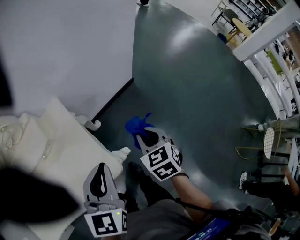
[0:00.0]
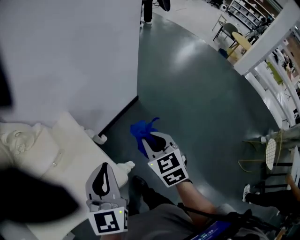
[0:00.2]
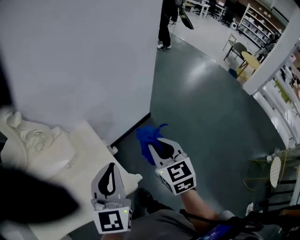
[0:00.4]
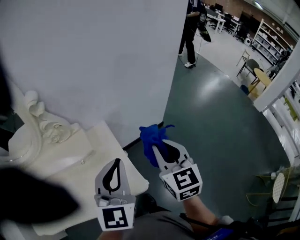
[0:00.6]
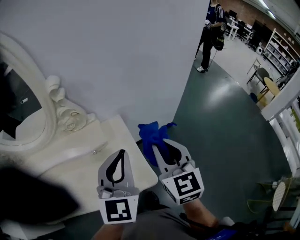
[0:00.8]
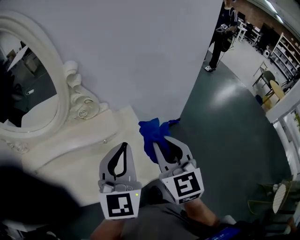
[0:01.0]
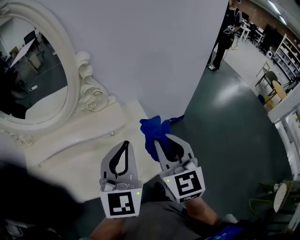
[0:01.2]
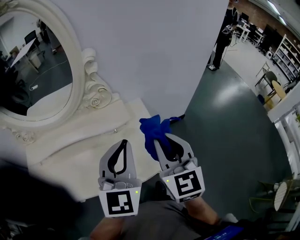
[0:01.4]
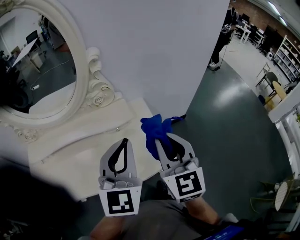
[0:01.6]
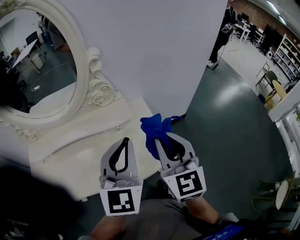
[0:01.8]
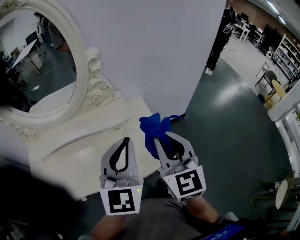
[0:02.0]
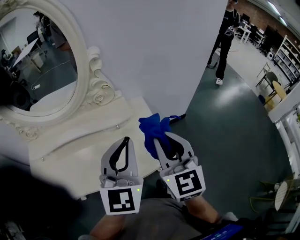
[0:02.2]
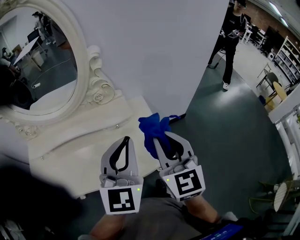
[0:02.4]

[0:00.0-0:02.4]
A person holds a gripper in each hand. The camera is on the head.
0:00.0 to 0:01.2: The right gripper heads upward and to the left, covering some 35 cm, and tips its fingers upward by approximately 30 degrees; the left gripper travels to the left and upward by roughly 25 cm, and changes its angle by some 30 degrees.
0:01.2 to 0:02.4: The grippers stay close to where they were, moving slightly.

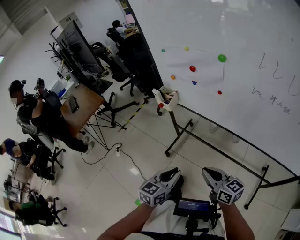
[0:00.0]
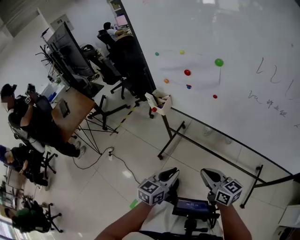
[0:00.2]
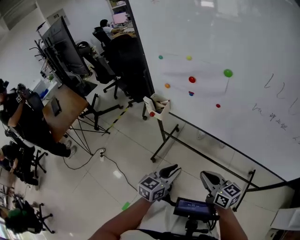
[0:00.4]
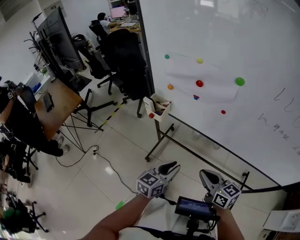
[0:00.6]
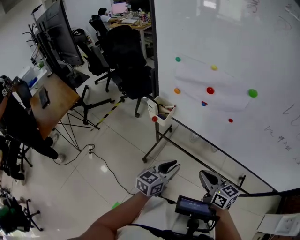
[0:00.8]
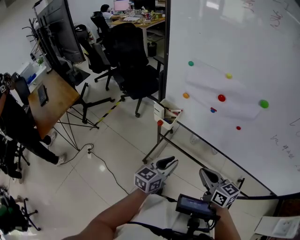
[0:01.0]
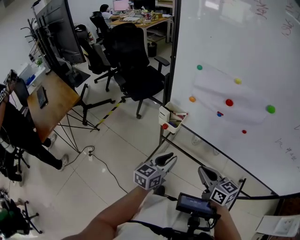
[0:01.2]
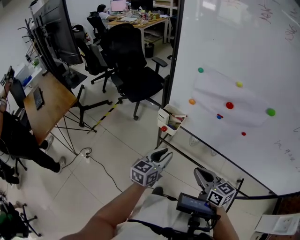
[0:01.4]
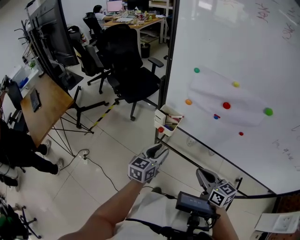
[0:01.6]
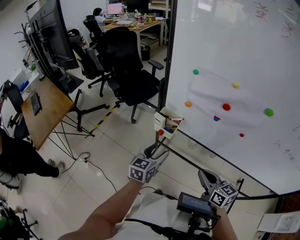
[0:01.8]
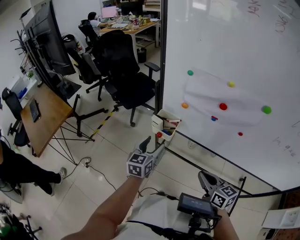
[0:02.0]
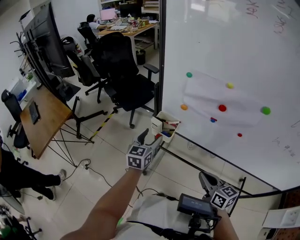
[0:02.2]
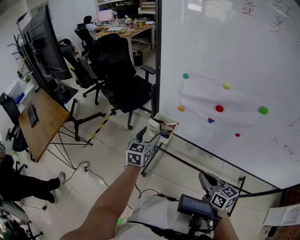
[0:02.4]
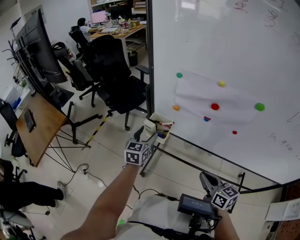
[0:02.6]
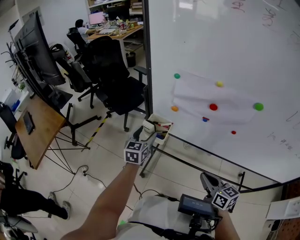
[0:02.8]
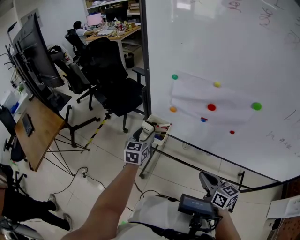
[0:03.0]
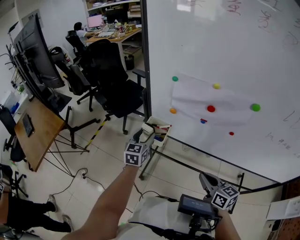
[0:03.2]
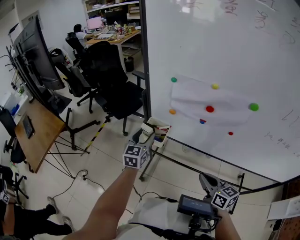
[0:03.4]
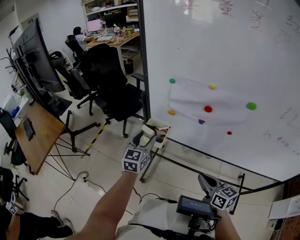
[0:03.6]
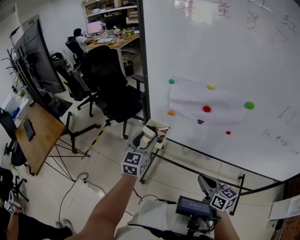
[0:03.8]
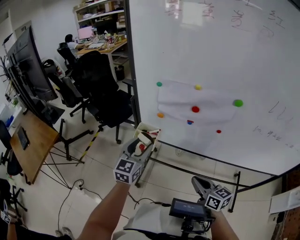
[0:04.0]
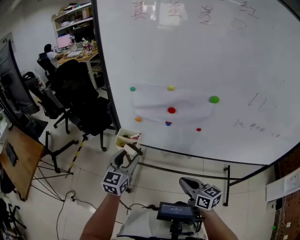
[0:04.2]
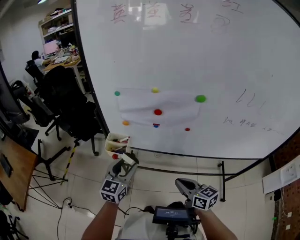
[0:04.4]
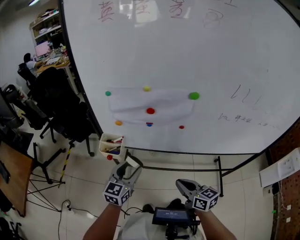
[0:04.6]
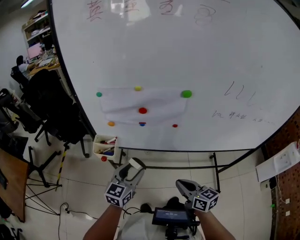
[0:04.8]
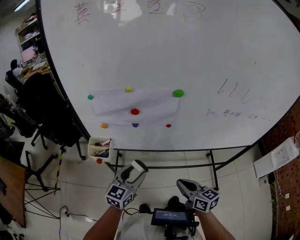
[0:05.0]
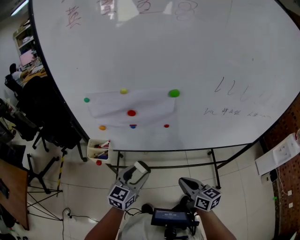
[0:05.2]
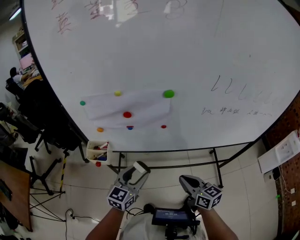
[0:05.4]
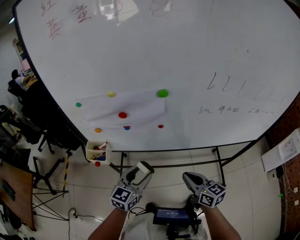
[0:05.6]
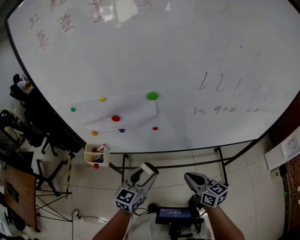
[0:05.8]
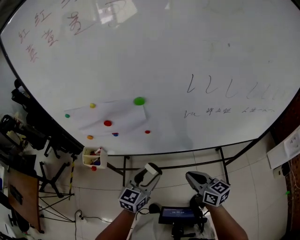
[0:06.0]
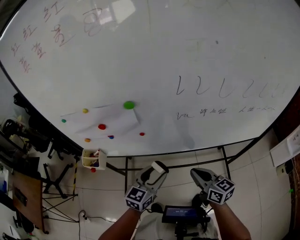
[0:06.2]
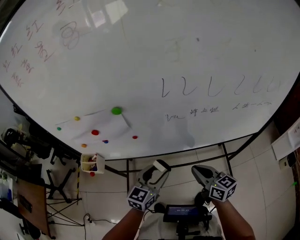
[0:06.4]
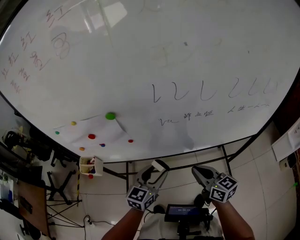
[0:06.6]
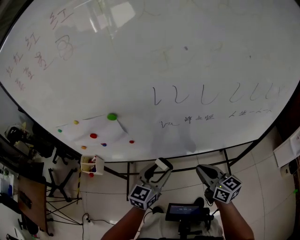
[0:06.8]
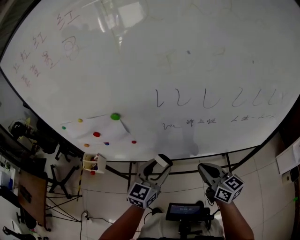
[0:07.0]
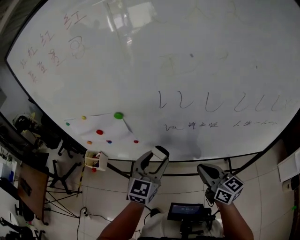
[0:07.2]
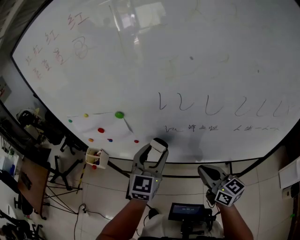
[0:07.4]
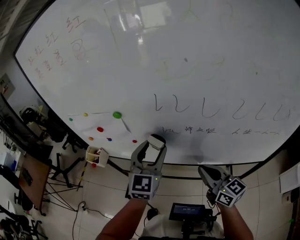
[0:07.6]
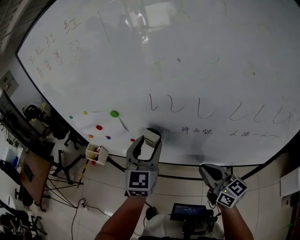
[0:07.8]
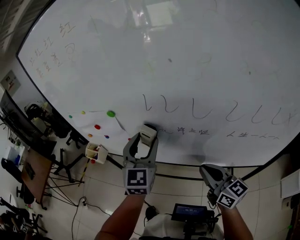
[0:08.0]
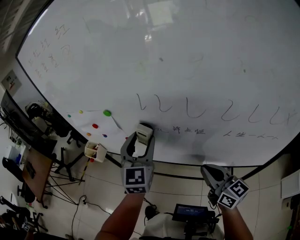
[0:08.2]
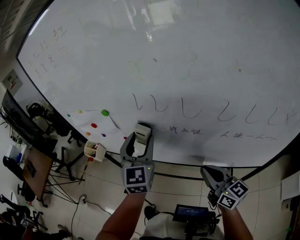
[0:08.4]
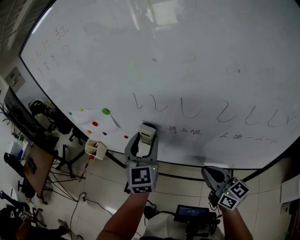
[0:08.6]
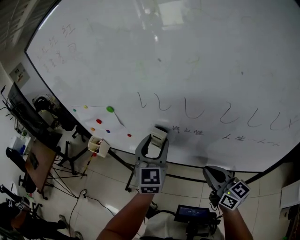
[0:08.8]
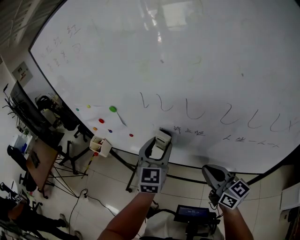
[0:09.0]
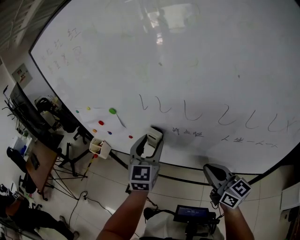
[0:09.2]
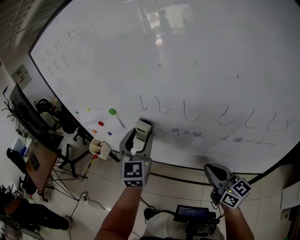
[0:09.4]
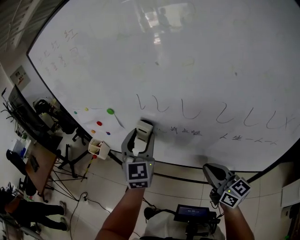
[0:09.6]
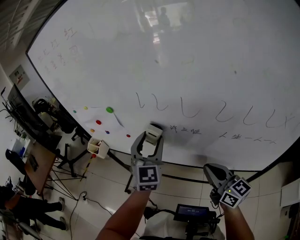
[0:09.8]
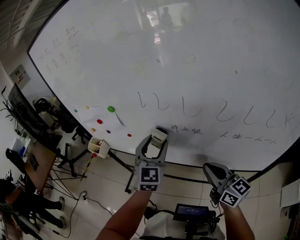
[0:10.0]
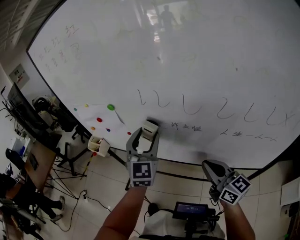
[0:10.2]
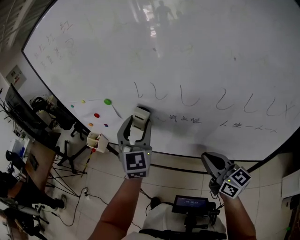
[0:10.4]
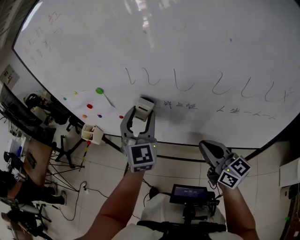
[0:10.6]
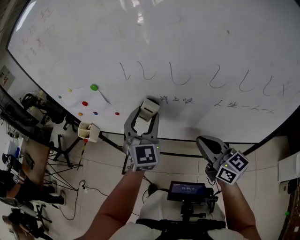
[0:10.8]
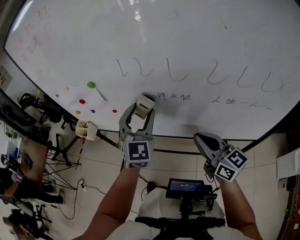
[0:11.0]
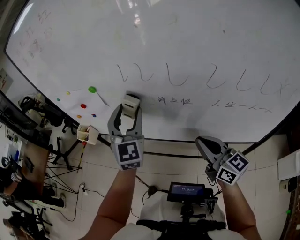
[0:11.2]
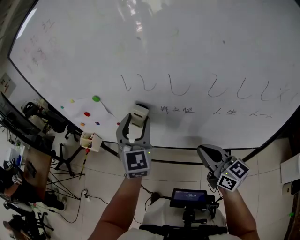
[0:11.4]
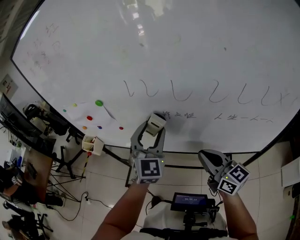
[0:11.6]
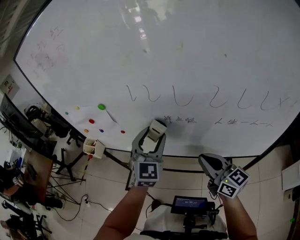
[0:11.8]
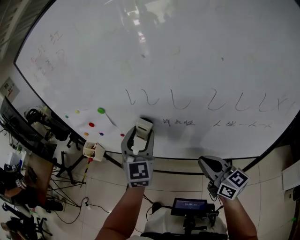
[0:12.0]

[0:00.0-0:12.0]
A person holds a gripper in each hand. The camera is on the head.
0:00.0 to 0:01.6: The grippers both shift forward and to the left by some 30 cm.
0:01.6 to 0:03.0: The left gripper heads forward, covering some 15 cm.
0:03.0 to 0:04.4: The right gripper ends up about 5 cm from where it was; the left gripper moves backward, to the right and upward, some 15 cm, and changes its angle by some 20 degrees.
0:04.4 to 0:06.0: The grippers both shift to the right by roughly 20 cm. The left gripper changes its angle by roughly 20 degrees.
0:06.0 to 0:07.6: The right gripper travels to the right and upward by some 20 cm; the left gripper shifts approximately 25 cm upward, to the right and forward, and swivels some 30 degrees.
0:07.6 to 0:09.0: Both grippers move to the right, about 5 cm.
0:09.0 to 0:10.4: The left gripper goes up and down, approximately 10 cm each way, reversing 2 times.
0:10.4 to 0:12.0: The left gripper swings up and down, roughly 5 cm each way, with 2 reversals.

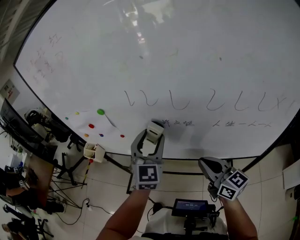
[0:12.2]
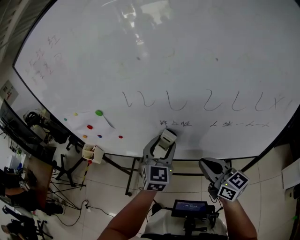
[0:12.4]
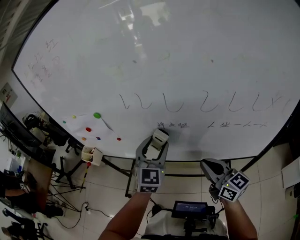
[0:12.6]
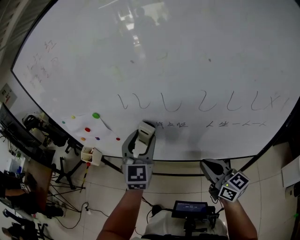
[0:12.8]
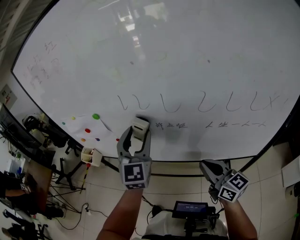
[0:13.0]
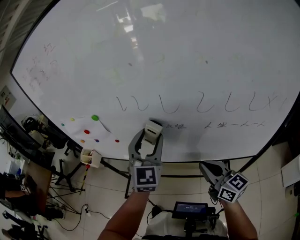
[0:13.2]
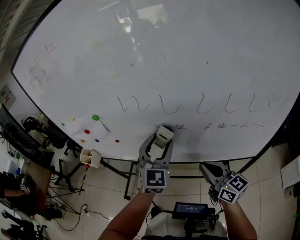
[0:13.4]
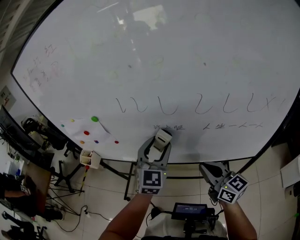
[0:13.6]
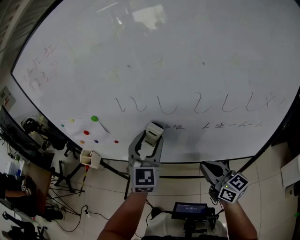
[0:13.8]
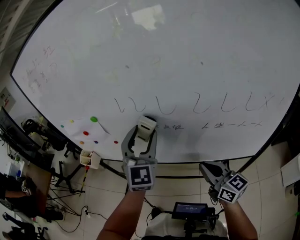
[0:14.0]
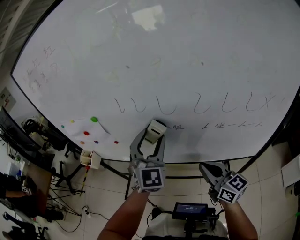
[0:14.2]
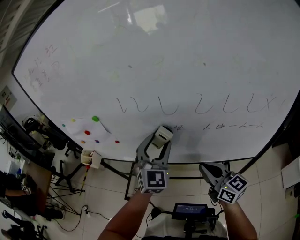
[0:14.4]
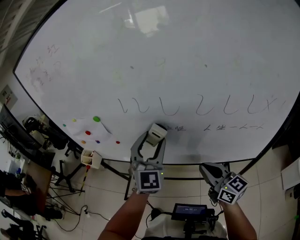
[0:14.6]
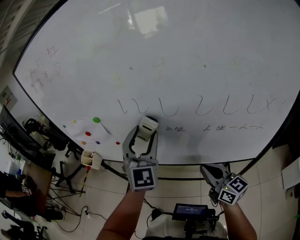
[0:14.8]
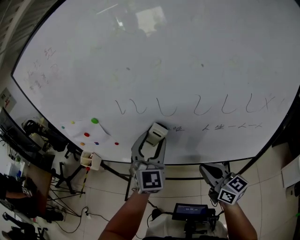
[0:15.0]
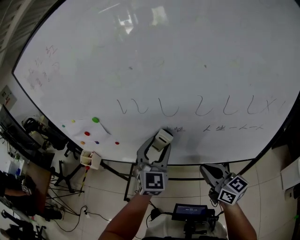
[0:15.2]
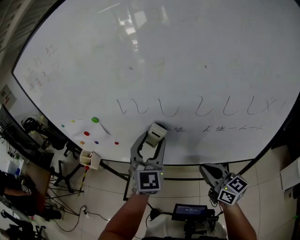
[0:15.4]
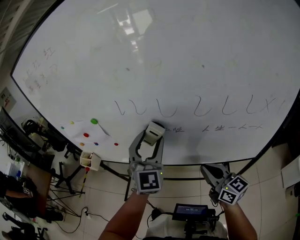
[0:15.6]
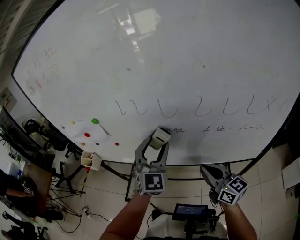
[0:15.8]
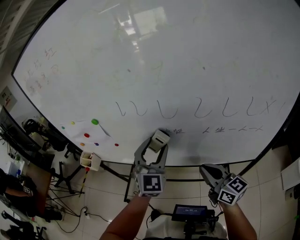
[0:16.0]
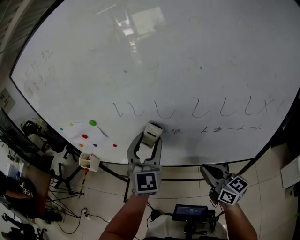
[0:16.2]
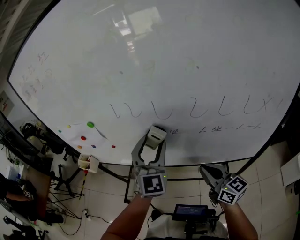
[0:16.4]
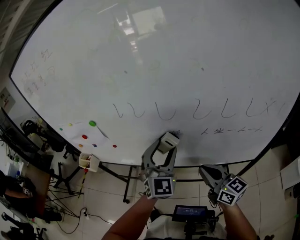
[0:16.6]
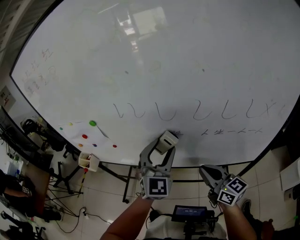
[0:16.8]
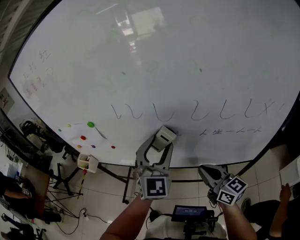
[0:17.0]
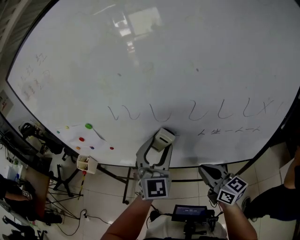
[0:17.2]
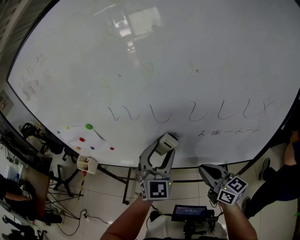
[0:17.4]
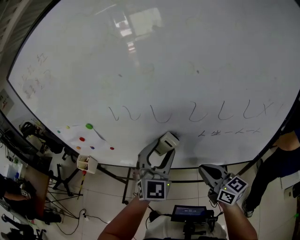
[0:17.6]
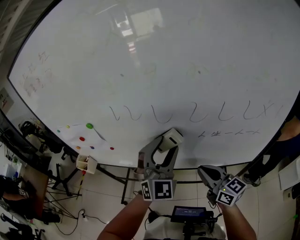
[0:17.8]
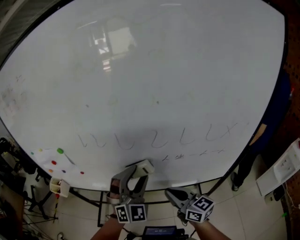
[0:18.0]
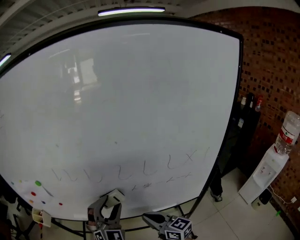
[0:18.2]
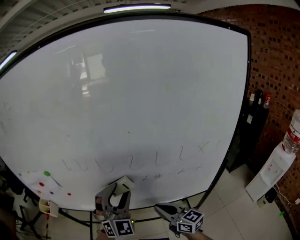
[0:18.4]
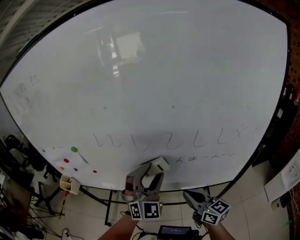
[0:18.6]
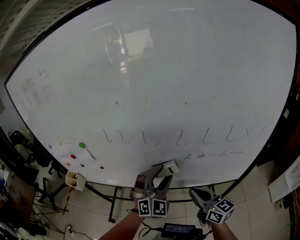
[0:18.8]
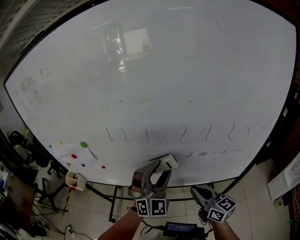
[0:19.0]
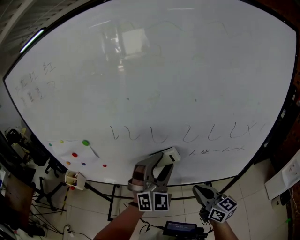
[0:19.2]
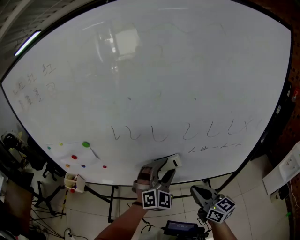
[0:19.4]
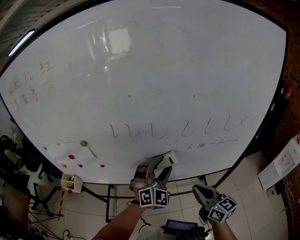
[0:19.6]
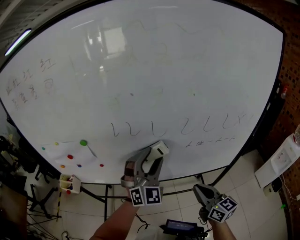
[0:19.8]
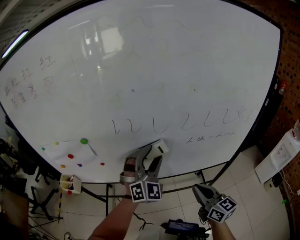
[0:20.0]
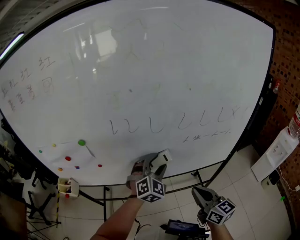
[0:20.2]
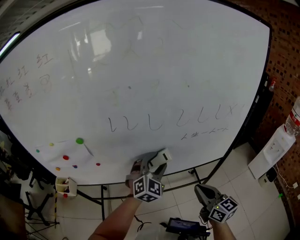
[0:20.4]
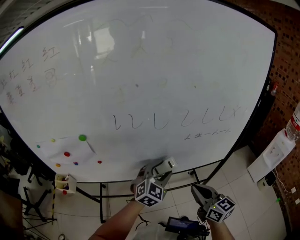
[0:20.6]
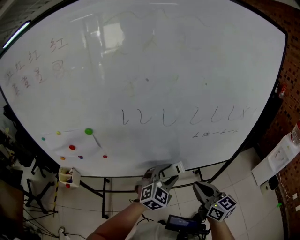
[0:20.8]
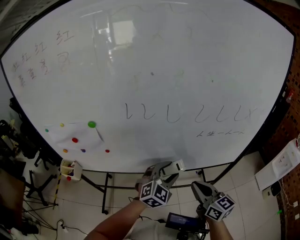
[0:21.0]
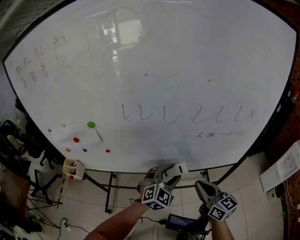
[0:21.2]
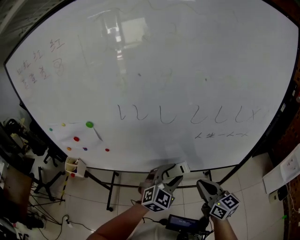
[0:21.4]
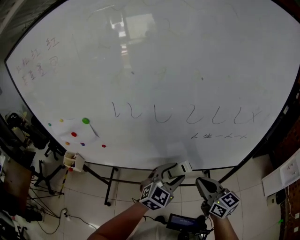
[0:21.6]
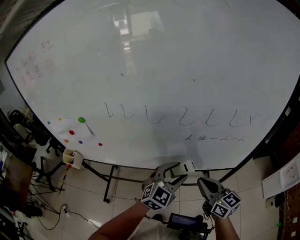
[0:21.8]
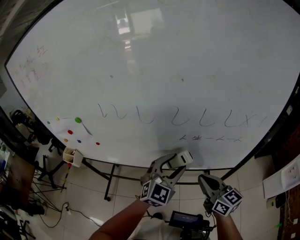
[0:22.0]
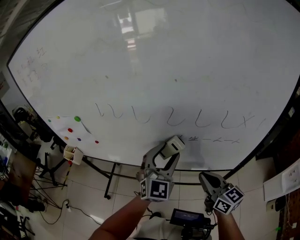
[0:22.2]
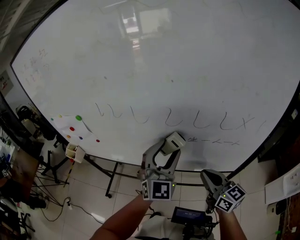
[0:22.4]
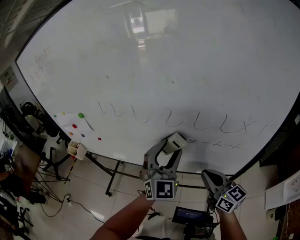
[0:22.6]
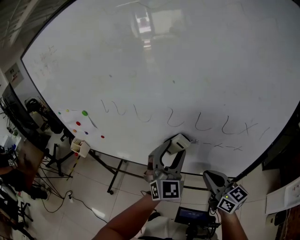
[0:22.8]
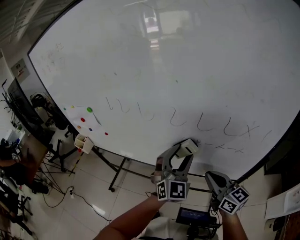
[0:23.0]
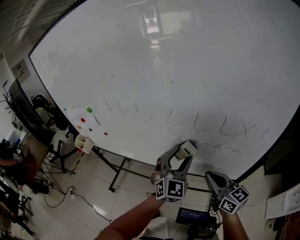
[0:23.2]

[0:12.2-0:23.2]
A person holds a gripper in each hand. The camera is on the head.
0:12.2 to 0:13.8: The left gripper swings up and down, approximately 10 cm each way, with 3 reversals.
0:13.8 to 0:15.4: The left gripper goes up and down, some 10 cm each way, reversing 4 times.
0:15.4 to 0:17.0: The grippers make only small movements.
0:18.4 to 0:20.0: The left gripper swings up and down, about 10 cm each way, with 3 reversals. The right gripper shifts some 10 cm backward and to the left.
0:20.0 to 0:21.6: The left gripper heads downward, to the right and backward, covering approximately 15 cm, and swivels roughly 30 degrees, while the right gripper ends up about 5 cm from where it was.
0:21.6 to 0:23.2: The left gripper is displaced to the right and upward by about 15 cm, and changes its angle by roughly 30 degrees; the right gripper heads to the right, covering roughly 15 cm.
